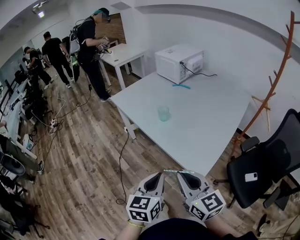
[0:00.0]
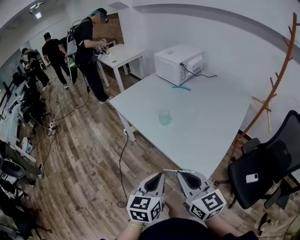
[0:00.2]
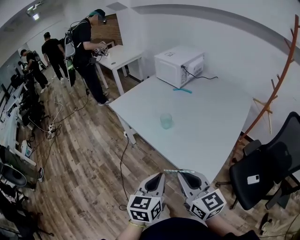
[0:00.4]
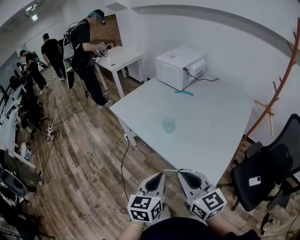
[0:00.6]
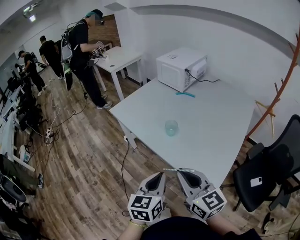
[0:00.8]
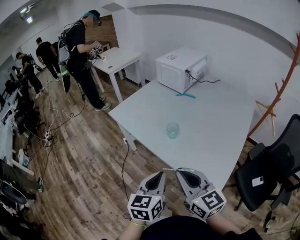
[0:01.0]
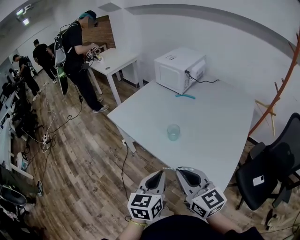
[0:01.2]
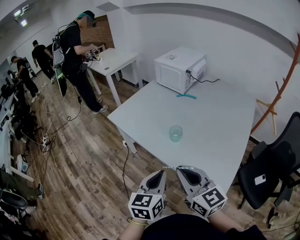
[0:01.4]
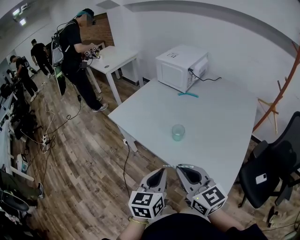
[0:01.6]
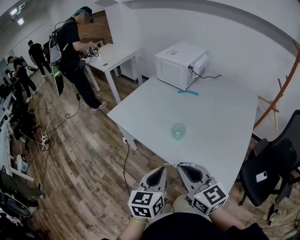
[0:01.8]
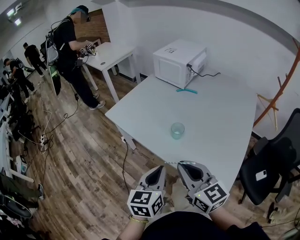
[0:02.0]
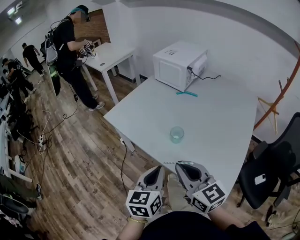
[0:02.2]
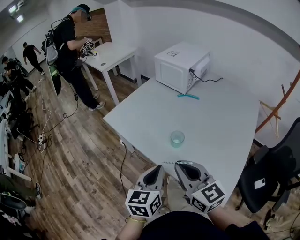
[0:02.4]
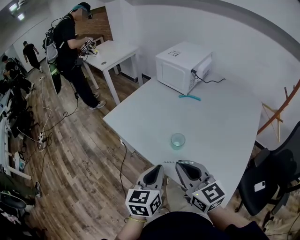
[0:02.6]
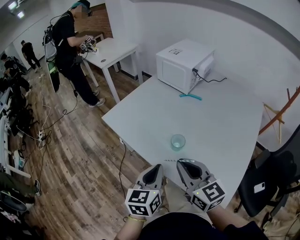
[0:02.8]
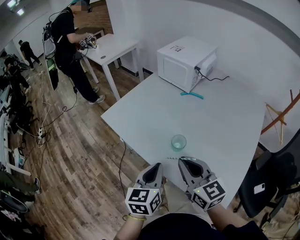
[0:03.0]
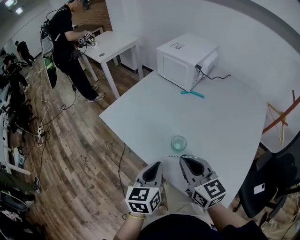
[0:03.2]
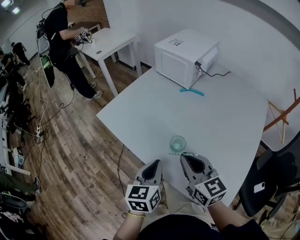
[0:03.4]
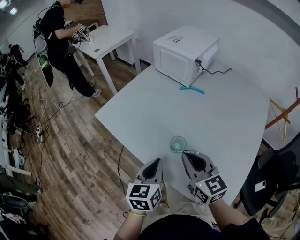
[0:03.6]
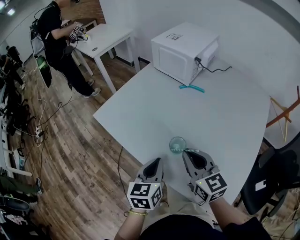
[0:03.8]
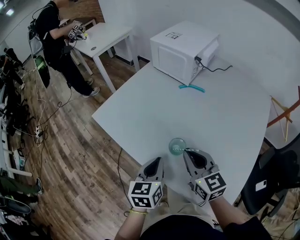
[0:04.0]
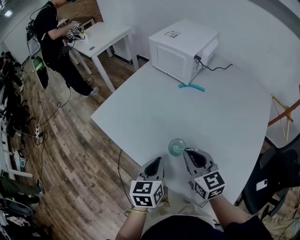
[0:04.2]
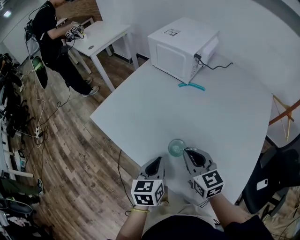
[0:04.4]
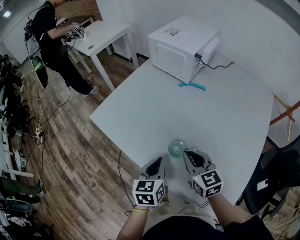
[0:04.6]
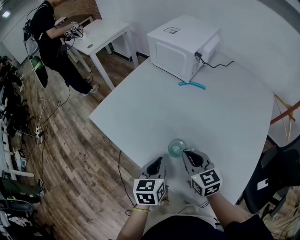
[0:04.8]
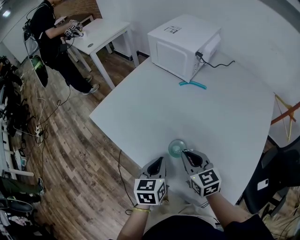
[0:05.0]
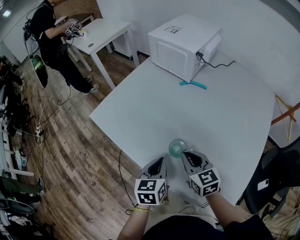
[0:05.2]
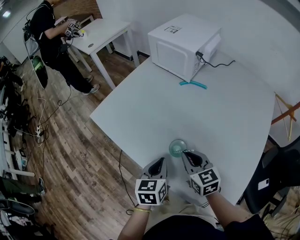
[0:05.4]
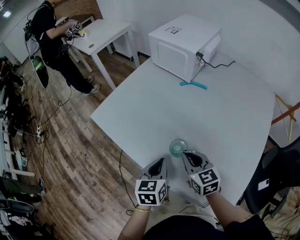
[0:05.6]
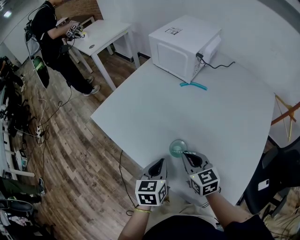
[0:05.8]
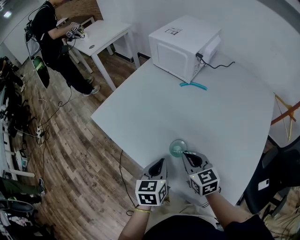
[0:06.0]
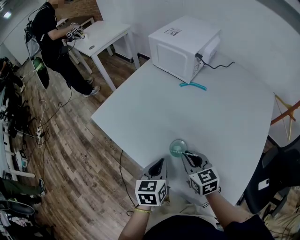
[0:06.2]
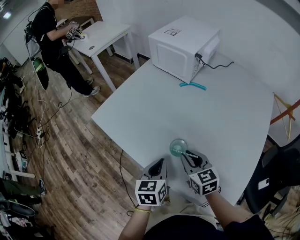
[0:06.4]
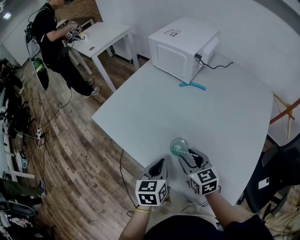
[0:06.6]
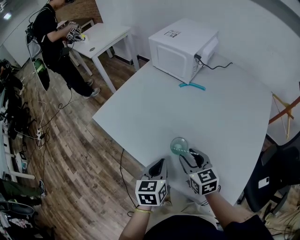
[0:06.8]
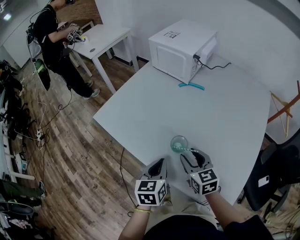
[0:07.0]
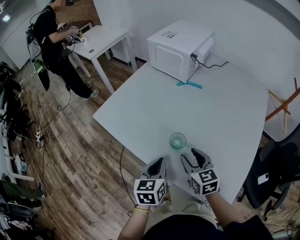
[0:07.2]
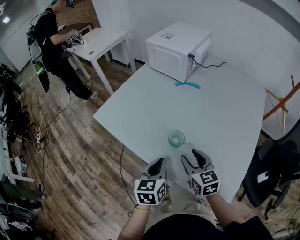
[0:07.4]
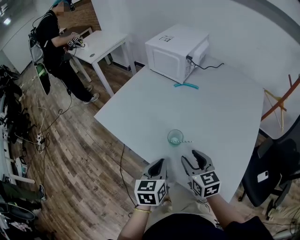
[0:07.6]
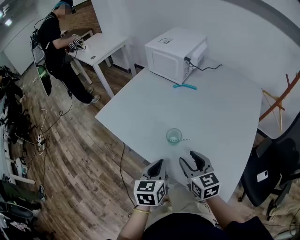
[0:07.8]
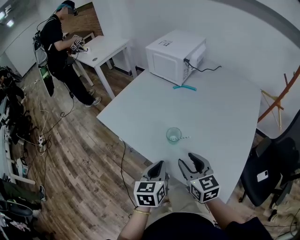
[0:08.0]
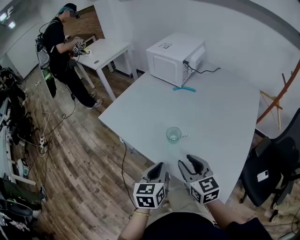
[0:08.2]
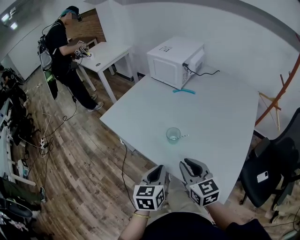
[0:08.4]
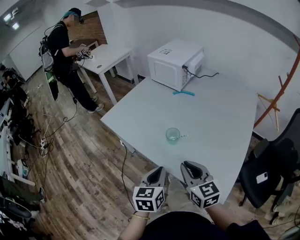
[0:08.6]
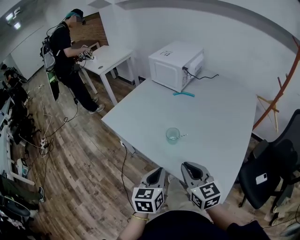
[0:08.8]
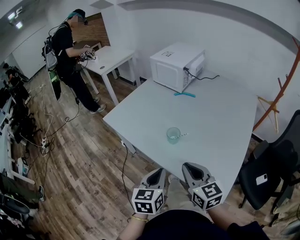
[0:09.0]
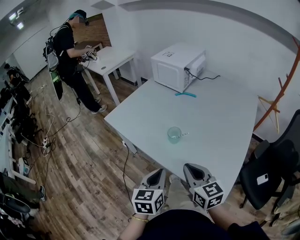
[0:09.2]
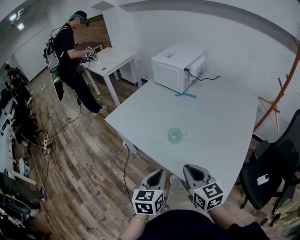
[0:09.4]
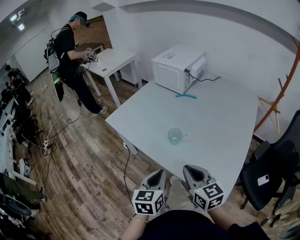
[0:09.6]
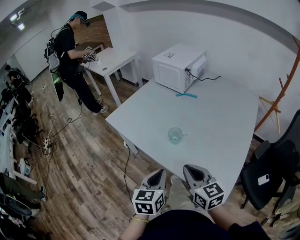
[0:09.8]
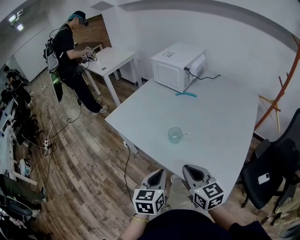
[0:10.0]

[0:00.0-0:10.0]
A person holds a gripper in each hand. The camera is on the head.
0:00.0 to 0:01.4: Both grippers move forward and to the left, roughly 20 cm.
0:01.4 to 0:02.8: The two grippers go roughly 10 cm forward.
0:02.8 to 0:04.2: The left gripper is displaced forward and downward by roughly 10 cm. The right gripper goes approximately 15 cm forward, downward and to the right.
0:04.2 to 0:05.8: The right gripper shifts some 5 cm downward.
0:05.8 to 0:07.2: The right gripper opens its fingers.
0:07.2 to 0:08.6: The right gripper moves backward and upward, some 15 cm, and closes, while the left gripper goes about 10 cm backward.
0:08.6 to 0:10.0: The grippers make only small movements.

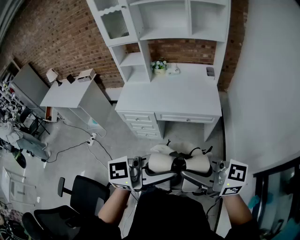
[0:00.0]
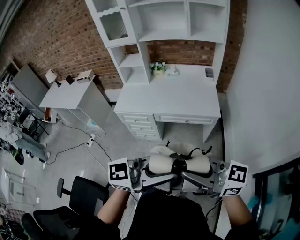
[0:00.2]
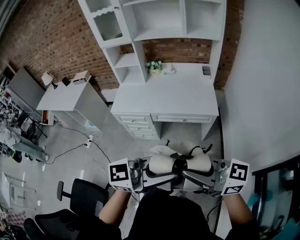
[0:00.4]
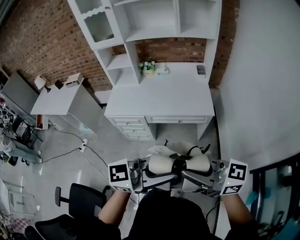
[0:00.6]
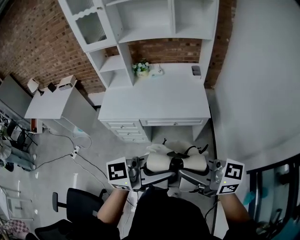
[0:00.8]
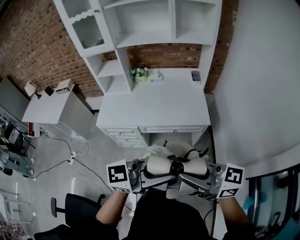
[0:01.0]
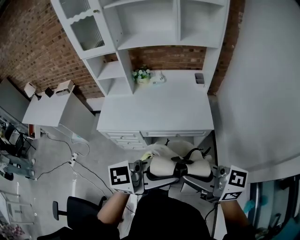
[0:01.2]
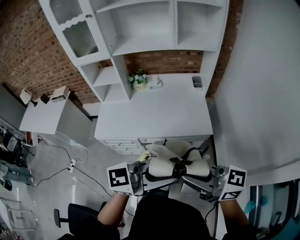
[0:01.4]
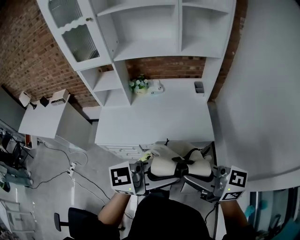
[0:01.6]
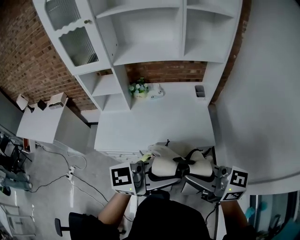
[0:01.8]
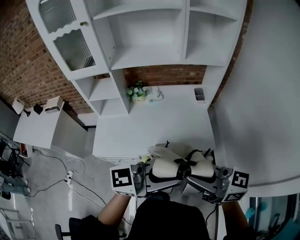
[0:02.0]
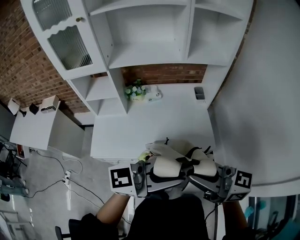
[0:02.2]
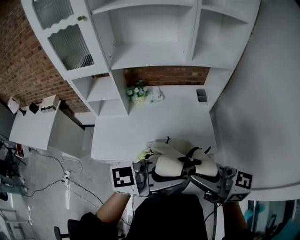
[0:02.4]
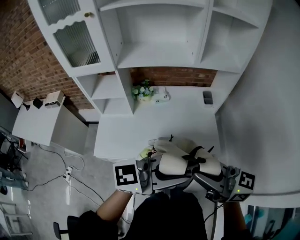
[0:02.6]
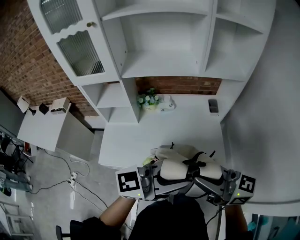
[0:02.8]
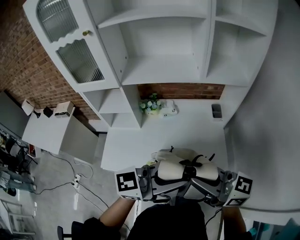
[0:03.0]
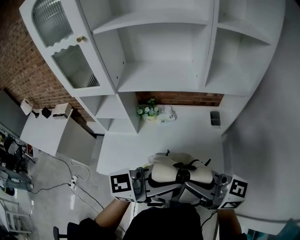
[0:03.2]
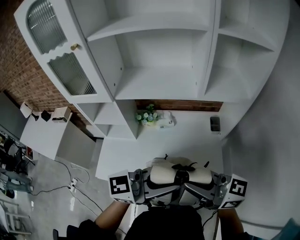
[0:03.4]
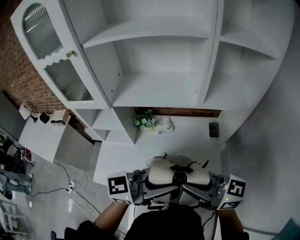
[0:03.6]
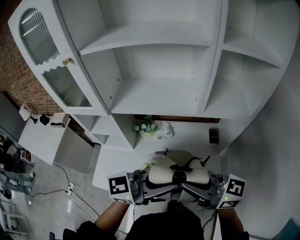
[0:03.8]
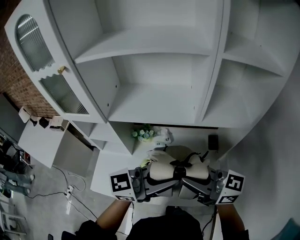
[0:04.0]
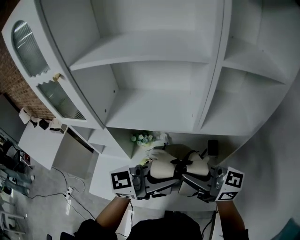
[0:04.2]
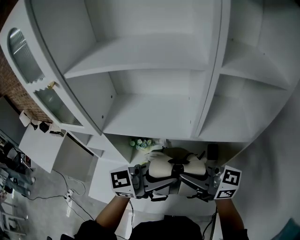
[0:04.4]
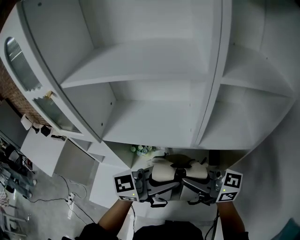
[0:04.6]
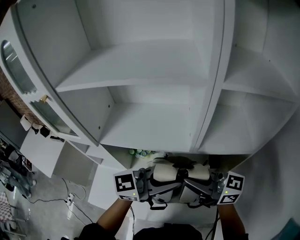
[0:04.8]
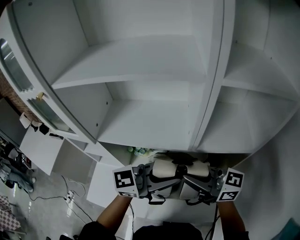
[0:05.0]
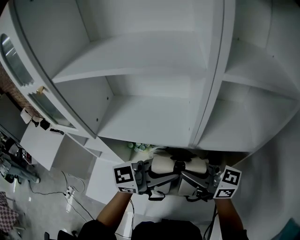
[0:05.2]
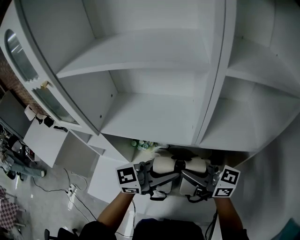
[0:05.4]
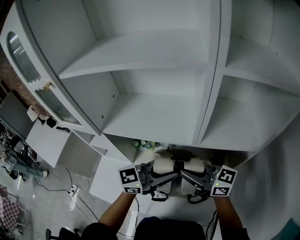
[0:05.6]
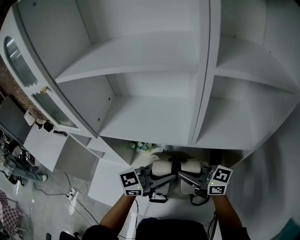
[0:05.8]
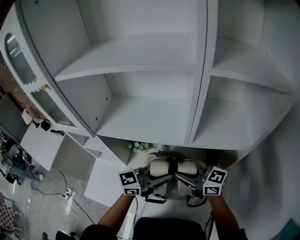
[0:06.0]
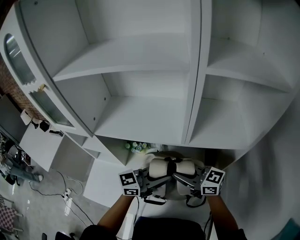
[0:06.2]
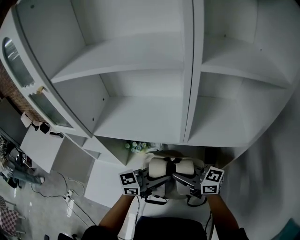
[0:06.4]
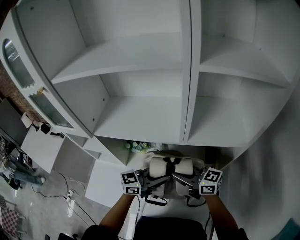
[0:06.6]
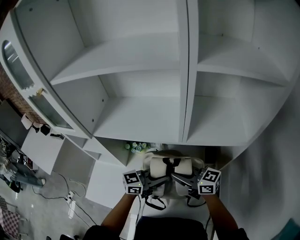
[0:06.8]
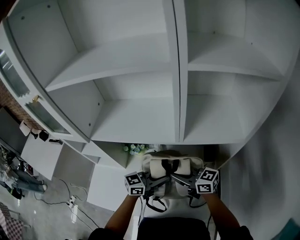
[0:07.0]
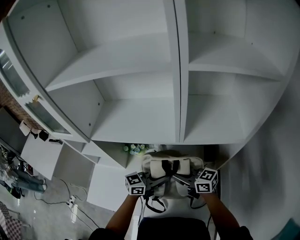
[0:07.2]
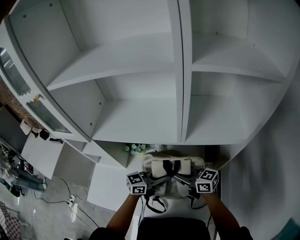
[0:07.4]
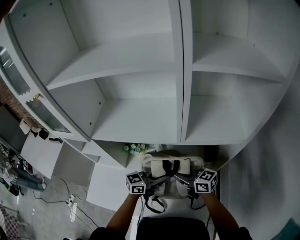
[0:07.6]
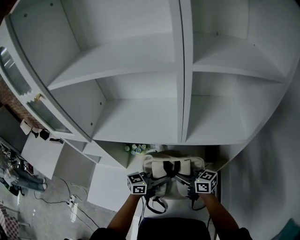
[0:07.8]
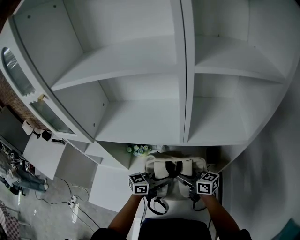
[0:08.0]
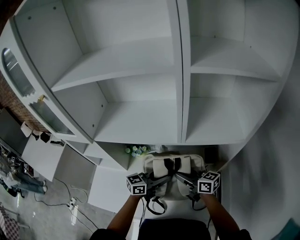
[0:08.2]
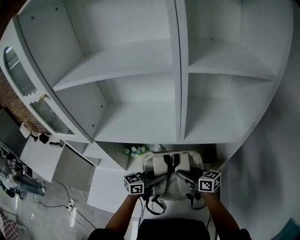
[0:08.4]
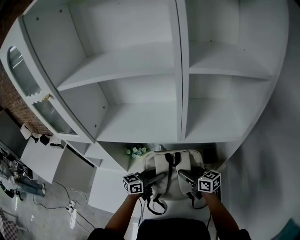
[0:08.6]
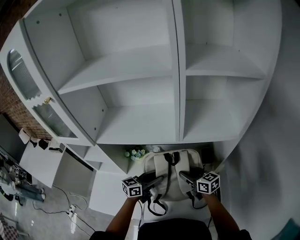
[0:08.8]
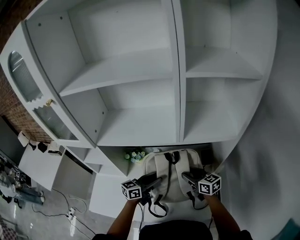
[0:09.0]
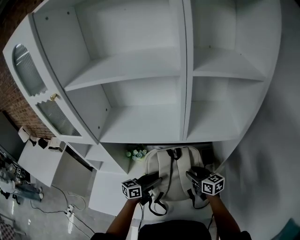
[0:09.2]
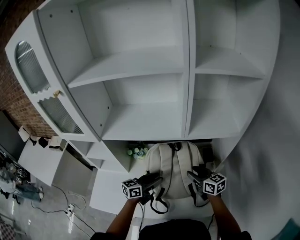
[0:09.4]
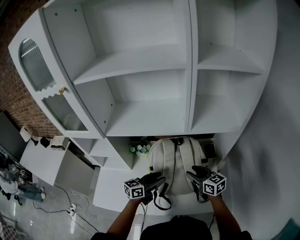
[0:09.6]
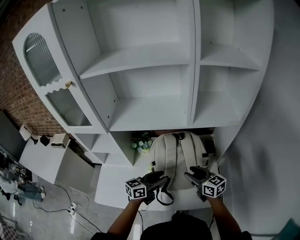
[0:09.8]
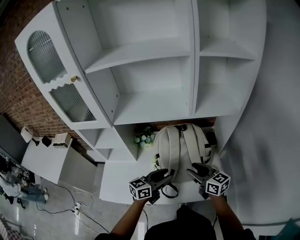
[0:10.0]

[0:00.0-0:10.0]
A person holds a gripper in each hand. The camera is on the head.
0:00.0 to 0:01.4: The right gripper shifts by roughly 20 cm; the left gripper moves roughly 20 cm.
0:01.4 to 0:02.8: The left gripper changes place by some 20 cm. The right gripper moves some 25 cm.
0:02.8 to 0:04.2: The left gripper changes place by approximately 30 cm. The right gripper moves some 30 cm.
0:04.2 to 0:05.8: The grippers both shift downward by about 10 cm.
0:05.8 to 0:07.2: The two grippers go some 10 cm downward.
0:07.2 to 0:08.6: The left gripper opens its fingers, while the right gripper moves some 5 cm, and opens up.
0:08.6 to 0:10.0: The two grippers go approximately 15 cm backward.

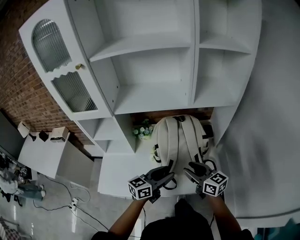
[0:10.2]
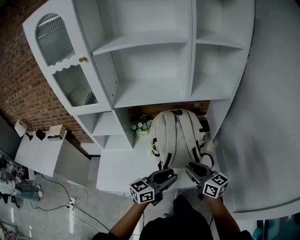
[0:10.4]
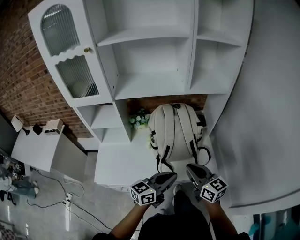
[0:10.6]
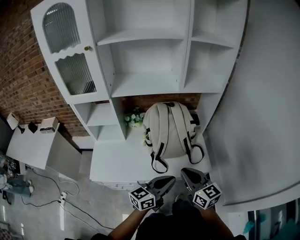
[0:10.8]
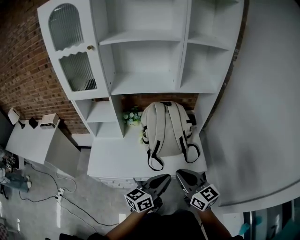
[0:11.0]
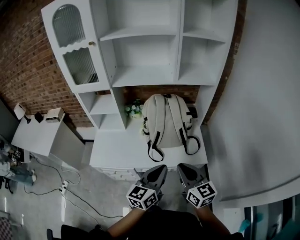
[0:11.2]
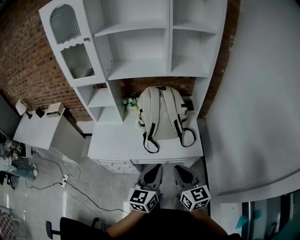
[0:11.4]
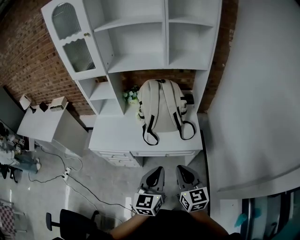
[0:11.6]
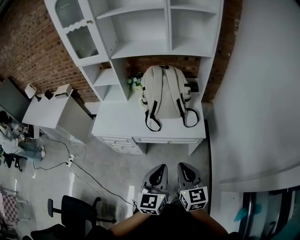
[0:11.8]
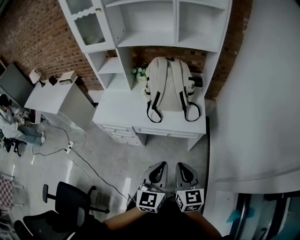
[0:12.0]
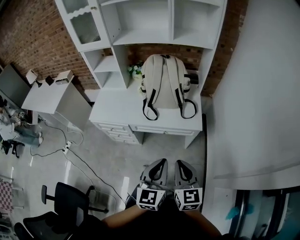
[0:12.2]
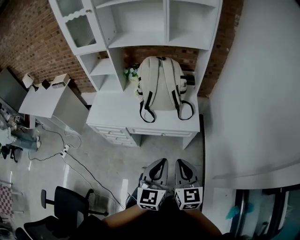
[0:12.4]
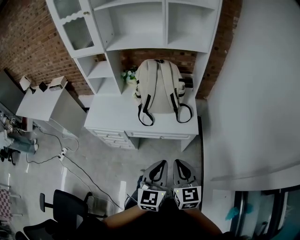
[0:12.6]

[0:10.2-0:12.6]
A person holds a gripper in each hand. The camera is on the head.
0:10.2 to 0:11.4: Both grippers move backward, approximately 25 cm. The right gripper closes up. Meanwhile the left gripper changes its angle by about 30 degrees, and closes up.
0:11.4 to 0:12.6: Both grippers travel together backward and to the right, some 15 cm.

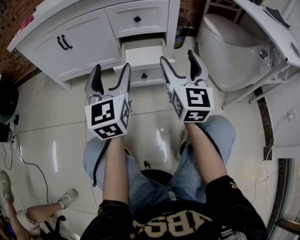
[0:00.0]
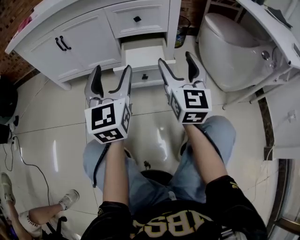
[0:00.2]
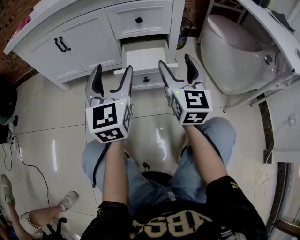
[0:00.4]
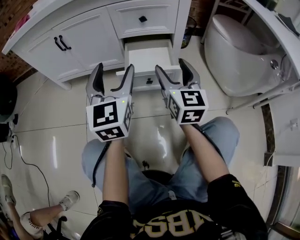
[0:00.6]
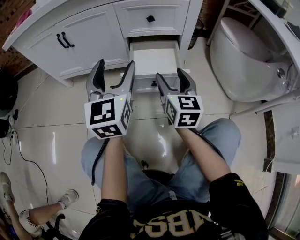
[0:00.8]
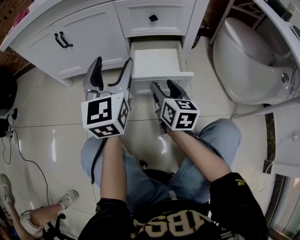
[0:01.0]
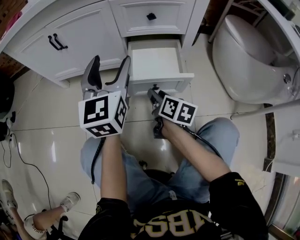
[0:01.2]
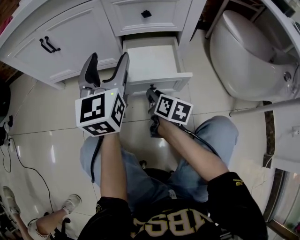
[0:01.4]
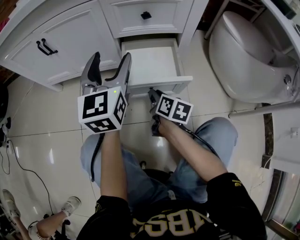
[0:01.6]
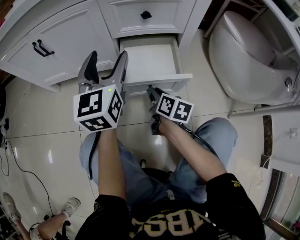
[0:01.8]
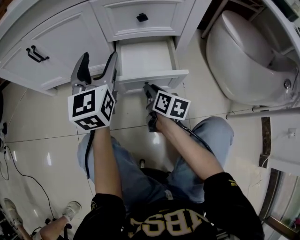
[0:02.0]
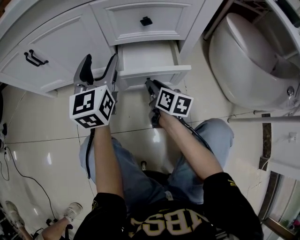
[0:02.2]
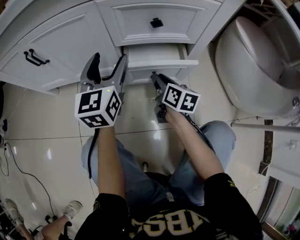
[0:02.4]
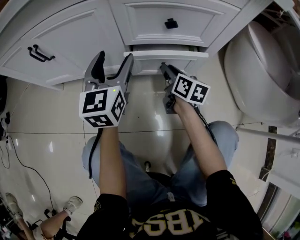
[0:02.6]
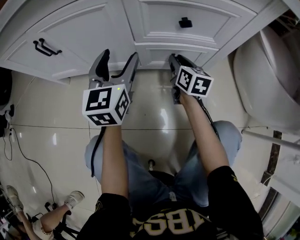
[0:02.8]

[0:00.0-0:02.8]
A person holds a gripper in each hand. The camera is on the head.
0:00.0 to 0:01.4: The left gripper moves forward, some 15 cm; the right gripper goes about 30 cm downward and forward, points its fingers some 40 degrees further downward, and closes its fingers.
0:01.4 to 0:02.8: The left gripper travels forward and downward by about 15 cm. Meanwhile the right gripper shifts approximately 25 cm forward, and turns by roughly 20 degrees.
